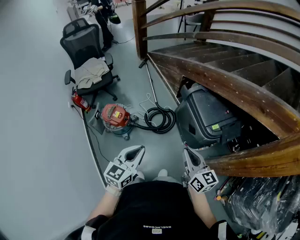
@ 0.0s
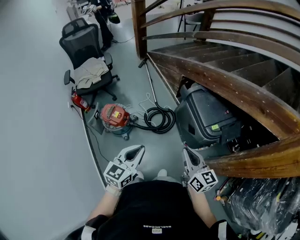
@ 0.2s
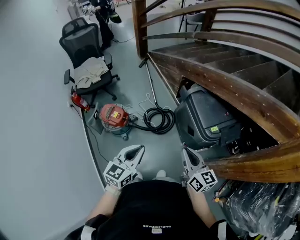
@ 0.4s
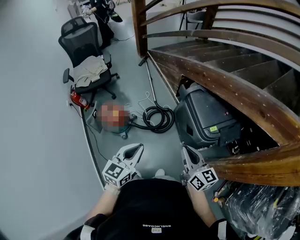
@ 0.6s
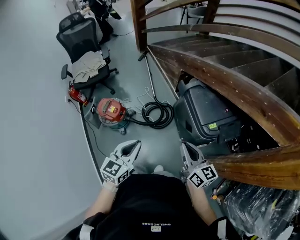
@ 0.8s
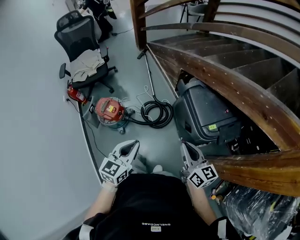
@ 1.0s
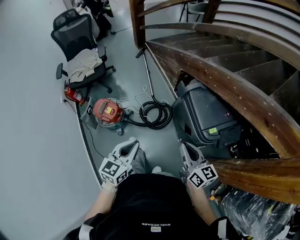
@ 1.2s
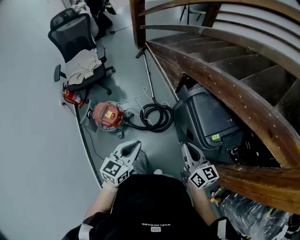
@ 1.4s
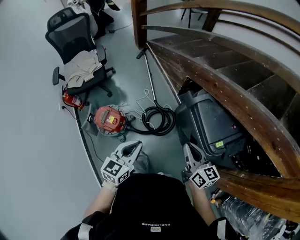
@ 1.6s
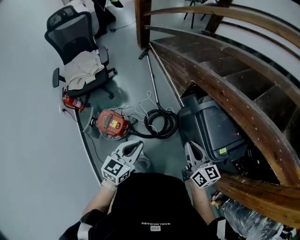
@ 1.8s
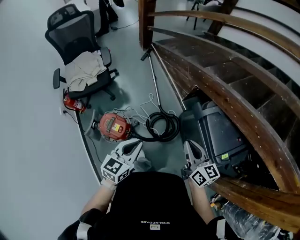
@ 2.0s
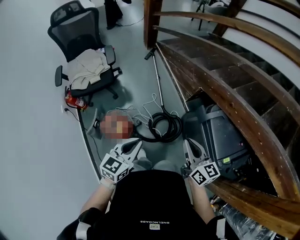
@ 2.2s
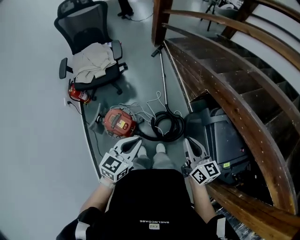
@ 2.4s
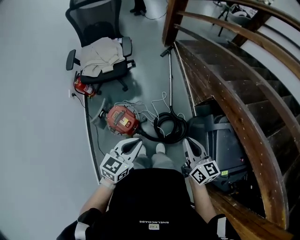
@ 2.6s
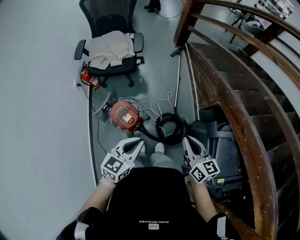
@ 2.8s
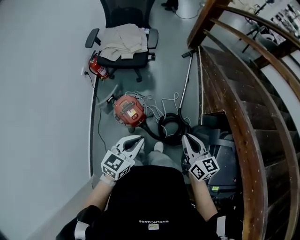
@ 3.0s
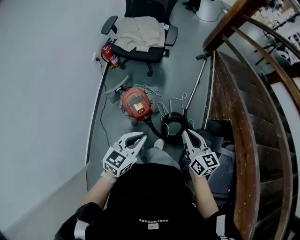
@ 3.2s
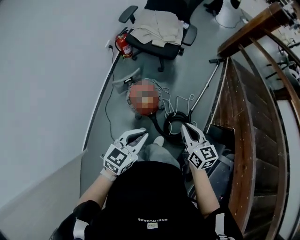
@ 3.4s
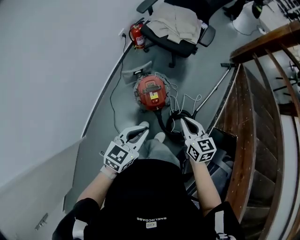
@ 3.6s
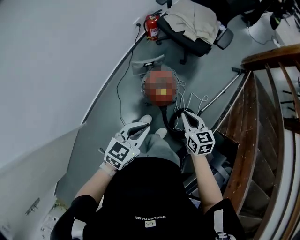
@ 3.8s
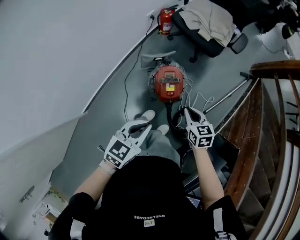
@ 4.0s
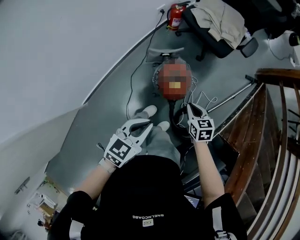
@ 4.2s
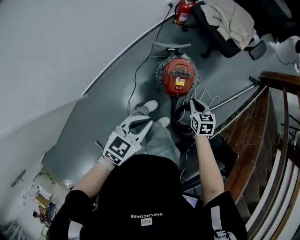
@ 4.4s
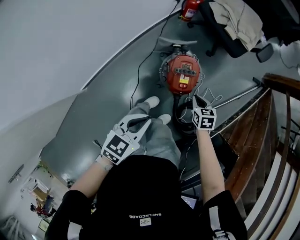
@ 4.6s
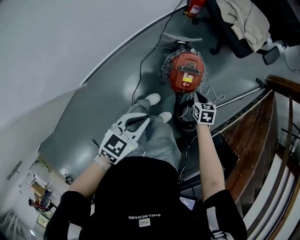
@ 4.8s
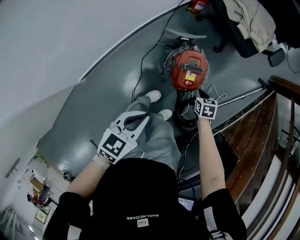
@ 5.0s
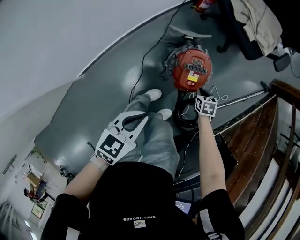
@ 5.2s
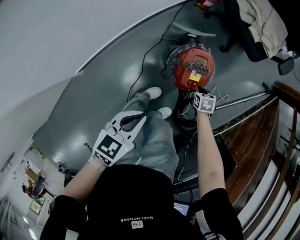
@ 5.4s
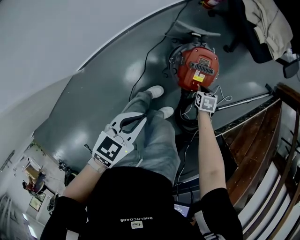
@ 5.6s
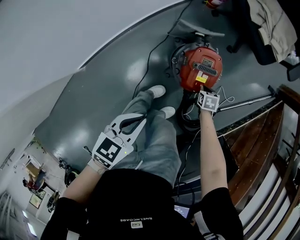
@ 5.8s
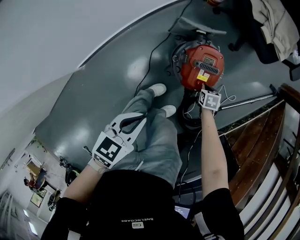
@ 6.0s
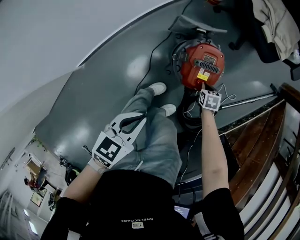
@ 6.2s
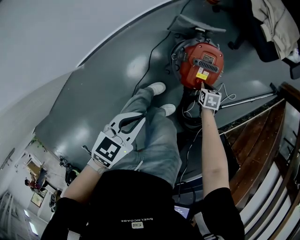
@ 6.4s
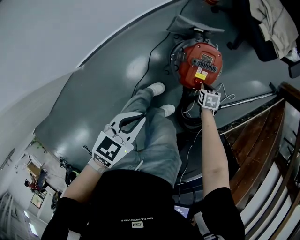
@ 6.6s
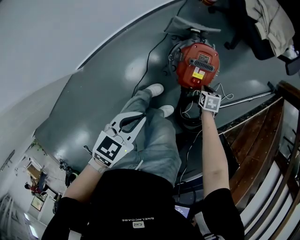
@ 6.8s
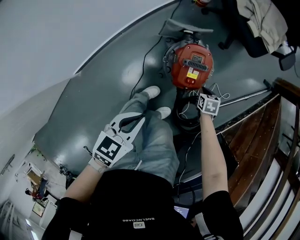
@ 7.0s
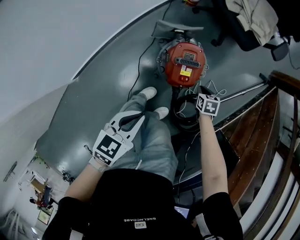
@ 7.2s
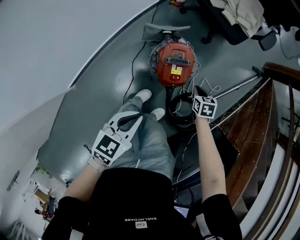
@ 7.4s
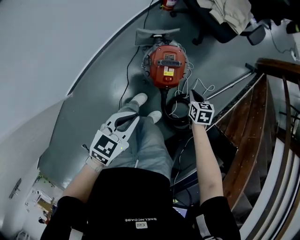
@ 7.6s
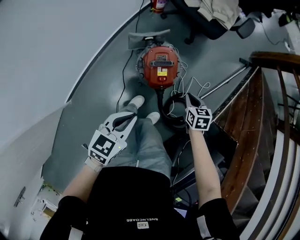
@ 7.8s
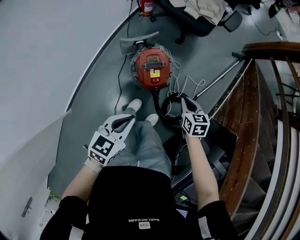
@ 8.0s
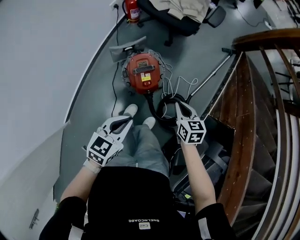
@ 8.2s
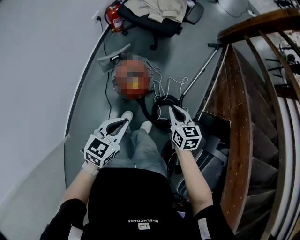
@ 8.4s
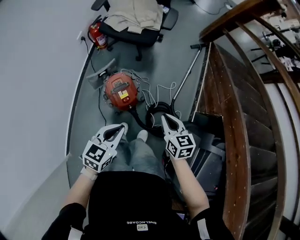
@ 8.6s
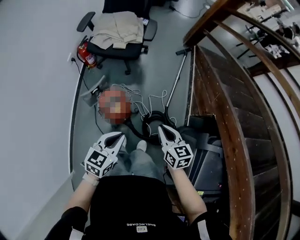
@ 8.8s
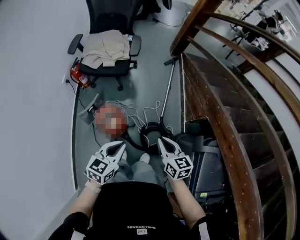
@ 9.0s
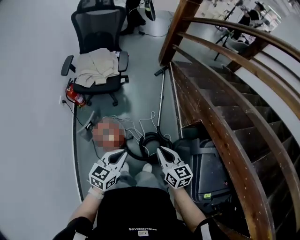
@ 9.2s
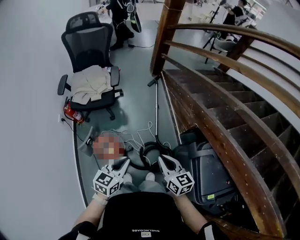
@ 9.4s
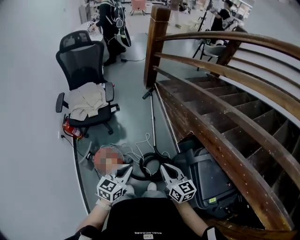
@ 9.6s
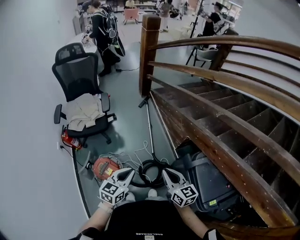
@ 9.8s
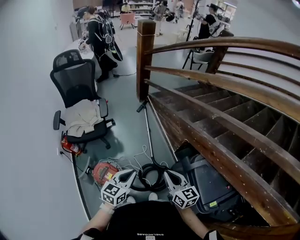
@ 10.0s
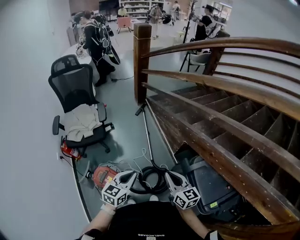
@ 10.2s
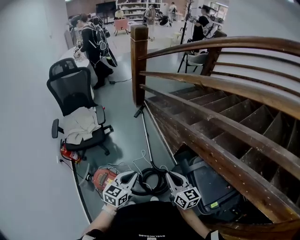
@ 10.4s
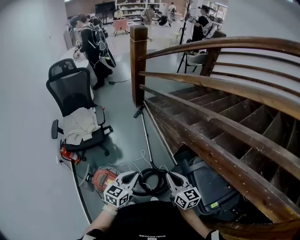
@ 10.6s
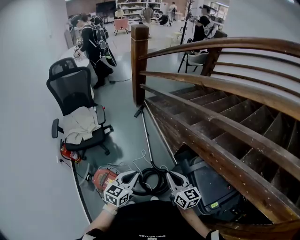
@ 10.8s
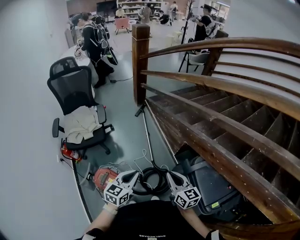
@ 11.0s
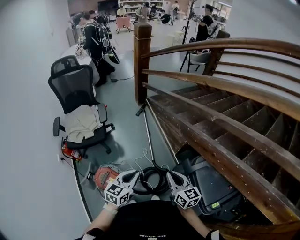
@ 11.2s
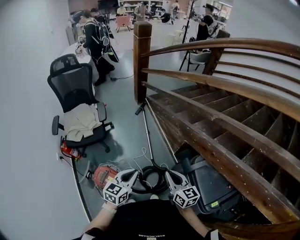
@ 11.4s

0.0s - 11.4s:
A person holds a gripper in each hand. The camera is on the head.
0.0s - 1.4s: Both grippers travel together forward, roughly 15 cm.
1.4s - 2.8s: The two grippers go some 35 cm forward and to the left. The right gripper changes its angle by approximately 20 degrees.
2.8s - 4.2s: The right gripper ends up about 40 cm from where it was, and angles its fingers downward, by some 30 degrees. The left gripper shifts by roughly 20 cm, and swivels about 40 degrees.
4.2s - 5.6s: The right gripper is displaced downward by some 30 cm, and rotates about 20 degrees; the left gripper is displaced downward by about 15 cm.
5.6s - 7.2s: The right gripper ends up roughly 10 cm from where it was.
7.2s - 8.6s: The left gripper heads upward, covering approximately 15 cm, and rotates some 30 degrees. The right gripper shifts about 35 cm upward, and angles its fingers upward, by roughly 30 degrees.
8.6s - 10.0s: The left gripper moves roughly 30 cm, and swivels approximately 30 degrees, while the right gripper moves approximately 30 cm, and swivels approximately 40 degrees.
10.0s - 11.4s: There are only small adjustments of the grippers.

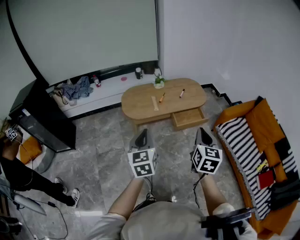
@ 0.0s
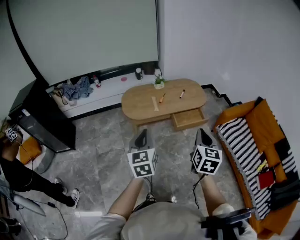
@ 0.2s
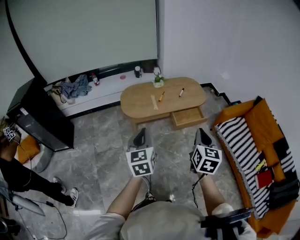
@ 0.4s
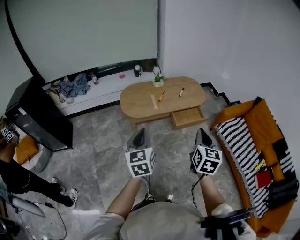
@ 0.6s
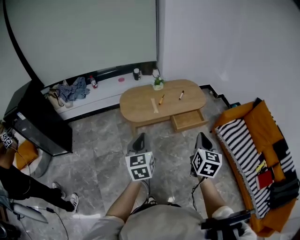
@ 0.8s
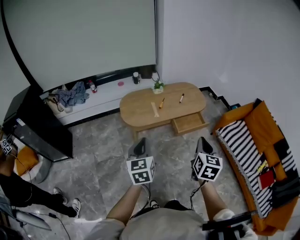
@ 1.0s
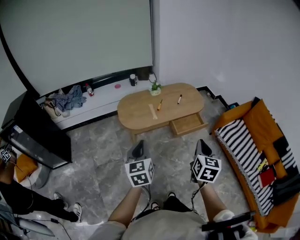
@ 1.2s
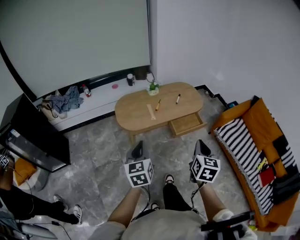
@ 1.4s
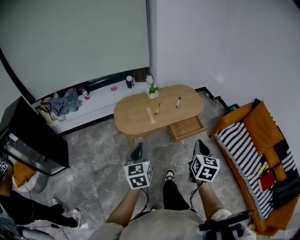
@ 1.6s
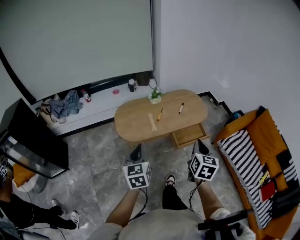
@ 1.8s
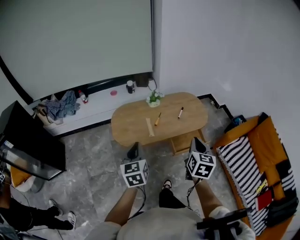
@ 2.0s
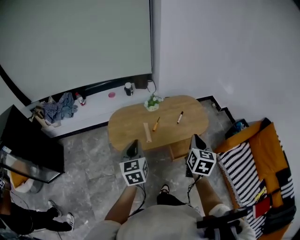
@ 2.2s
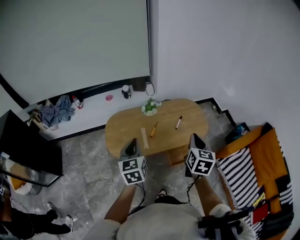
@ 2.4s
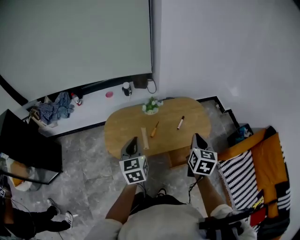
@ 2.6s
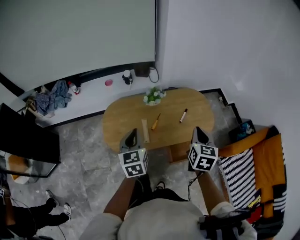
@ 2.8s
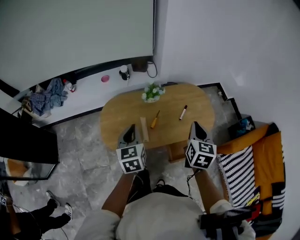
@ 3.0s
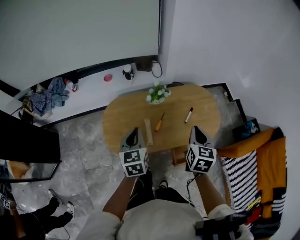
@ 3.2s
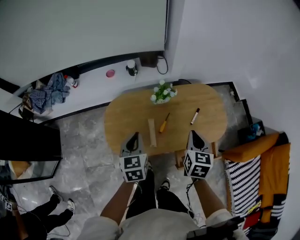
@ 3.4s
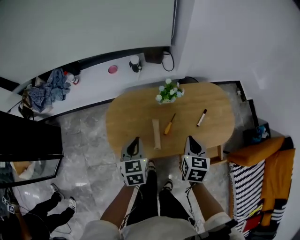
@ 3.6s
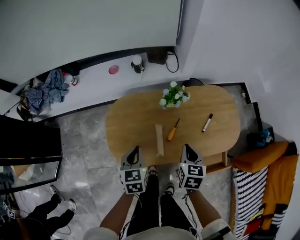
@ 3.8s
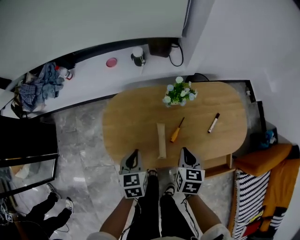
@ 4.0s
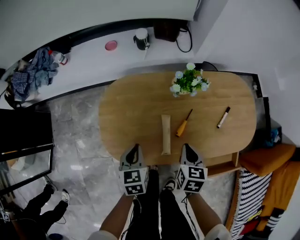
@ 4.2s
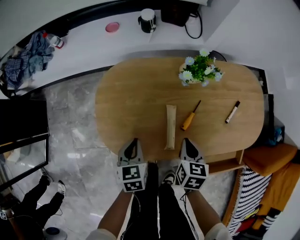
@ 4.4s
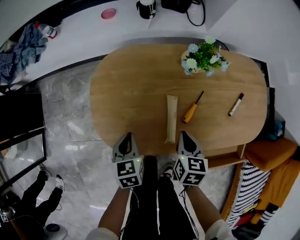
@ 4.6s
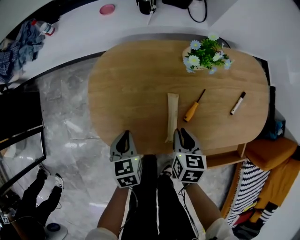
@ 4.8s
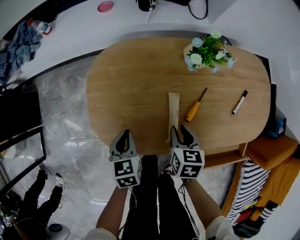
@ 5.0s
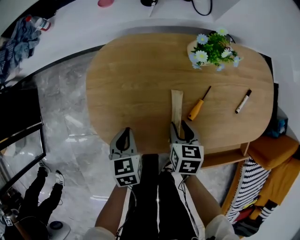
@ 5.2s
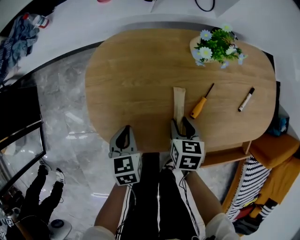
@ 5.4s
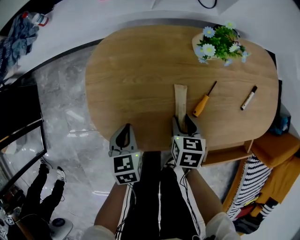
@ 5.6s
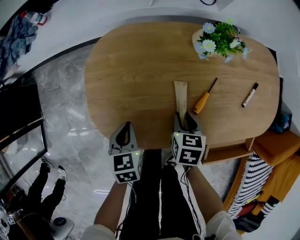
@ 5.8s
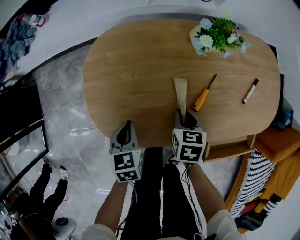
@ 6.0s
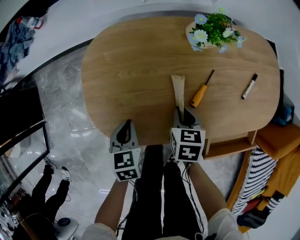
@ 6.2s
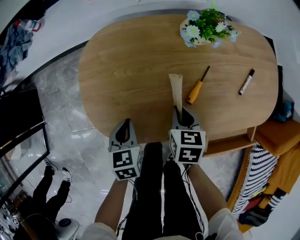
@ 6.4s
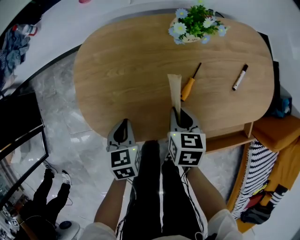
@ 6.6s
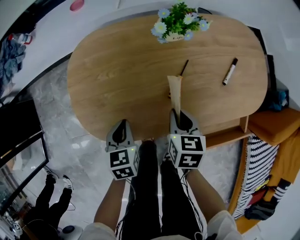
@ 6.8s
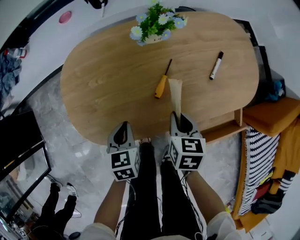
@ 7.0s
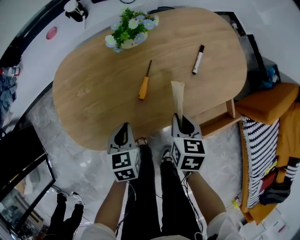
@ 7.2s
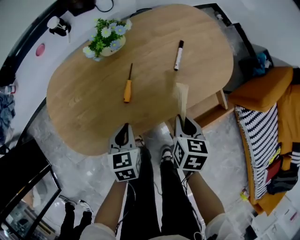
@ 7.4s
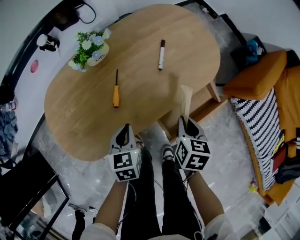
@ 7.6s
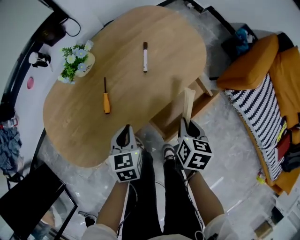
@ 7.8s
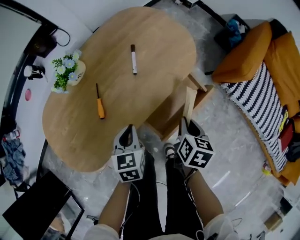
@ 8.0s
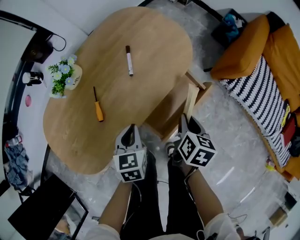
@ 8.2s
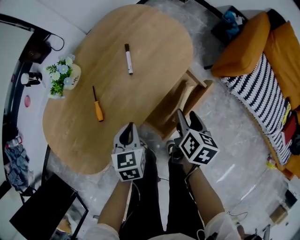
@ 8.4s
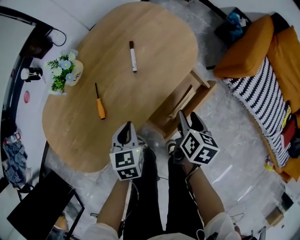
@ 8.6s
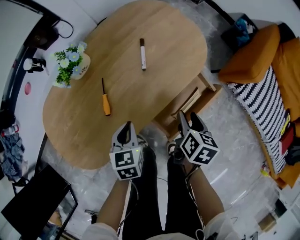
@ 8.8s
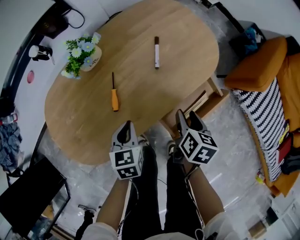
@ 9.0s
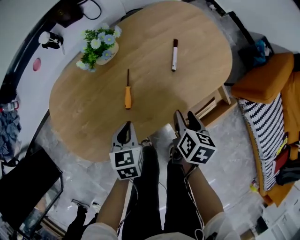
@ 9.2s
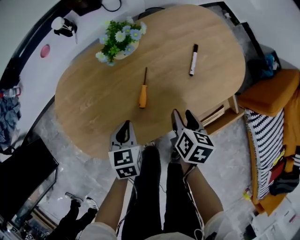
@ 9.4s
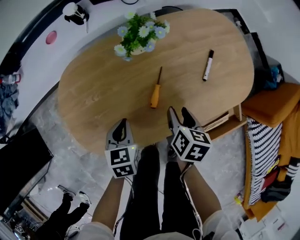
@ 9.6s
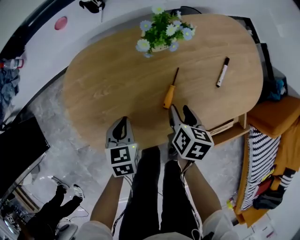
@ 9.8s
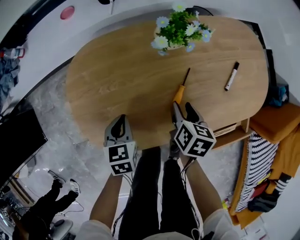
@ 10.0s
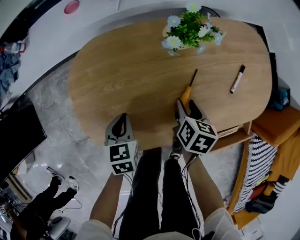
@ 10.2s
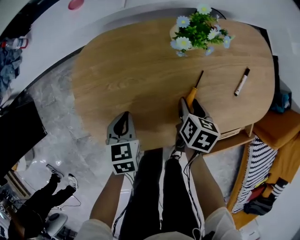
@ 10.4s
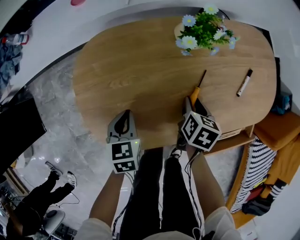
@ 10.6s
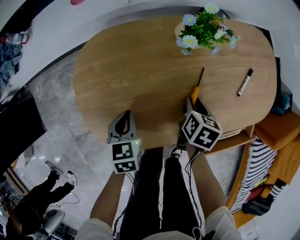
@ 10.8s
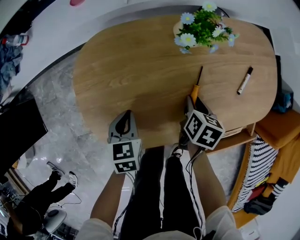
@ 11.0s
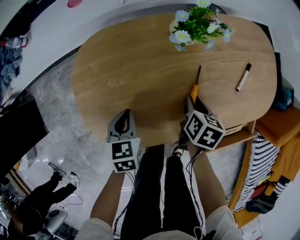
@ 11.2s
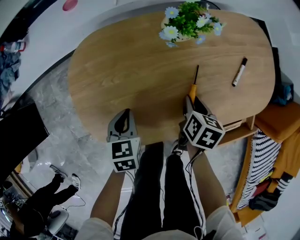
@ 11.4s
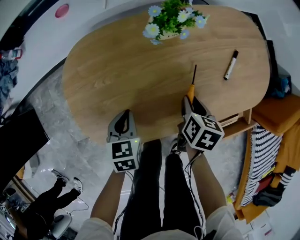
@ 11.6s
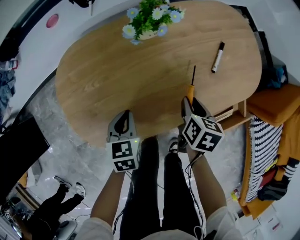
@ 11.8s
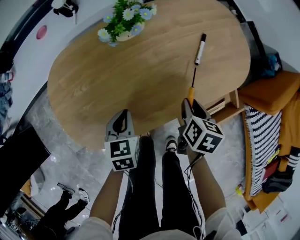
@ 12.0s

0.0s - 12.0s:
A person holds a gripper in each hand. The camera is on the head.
0.0s - 1.6s: The left gripper is displaced forward, to the left and downward by roughly 15 cm, while the right gripper travels forward and downward by approximately 10 cm.
1.6s - 3.0s: The pair of grippers is taken forward, roughly 40 cm.
3.0s - 4.4s: The right gripper travels downward and to the left by roughly 40 cm, and swivels approximately 30 degrees. Meanwhile the left gripper travels downward by some 35 cm, and rotates some 20 degrees.
4.4s - 6.0s: The left gripper is displaced downward by roughly 5 cm; the right gripper shifts about 10 cm downward.
6.0s - 7.6s: The left gripper moves about 25 cm, and rotates approximately 30 degrees. Meanwhile the right gripper moves approximately 35 cm, and rotates about 40 degrees.
7.6s - 9.0s: The left gripper moves roughly 10 cm to the right and comes back. The right gripper moves some 10 cm to the right and comes back, and opens its fingers.
9.0s - 10.4s: The right gripper shifts by roughly 30 cm, and changes its angle by approximately 30 degrees. Meanwhile the left gripper shifts by about 30 cm, and changes its angle by roughly 30 degrees.
10.4s - 12.0s: The left gripper goes some 15 cm to the right. Meanwhile the right gripper goes roughly 20 cm to the right and backward, and closes.
